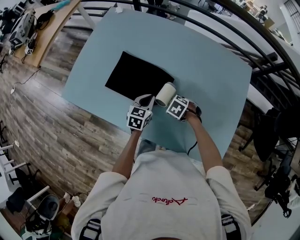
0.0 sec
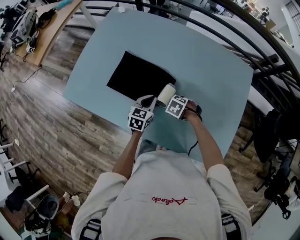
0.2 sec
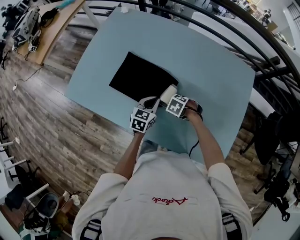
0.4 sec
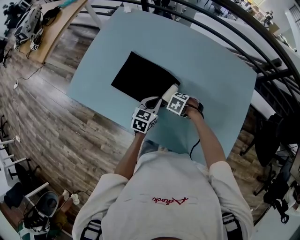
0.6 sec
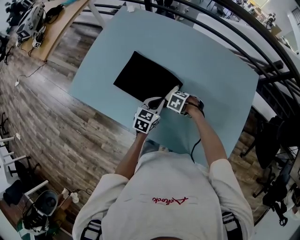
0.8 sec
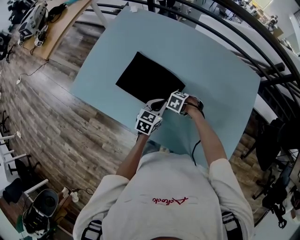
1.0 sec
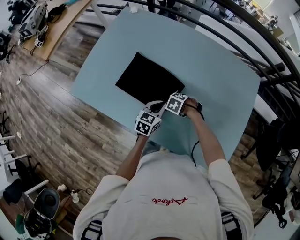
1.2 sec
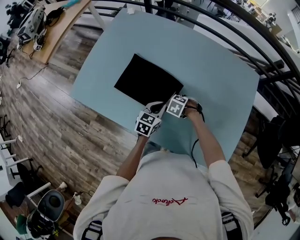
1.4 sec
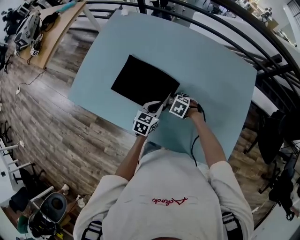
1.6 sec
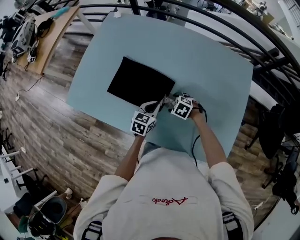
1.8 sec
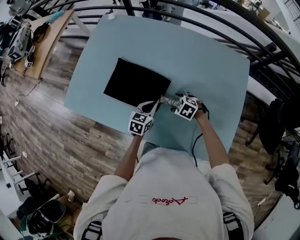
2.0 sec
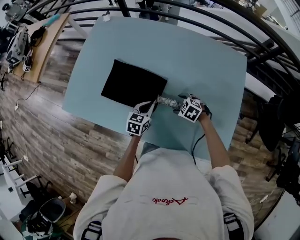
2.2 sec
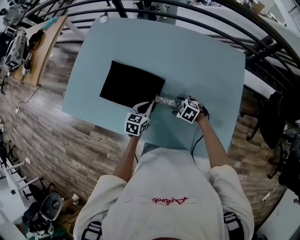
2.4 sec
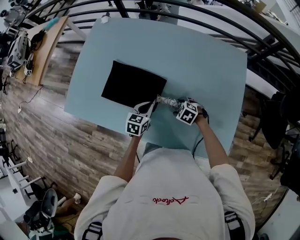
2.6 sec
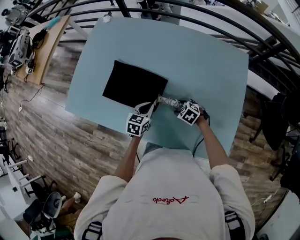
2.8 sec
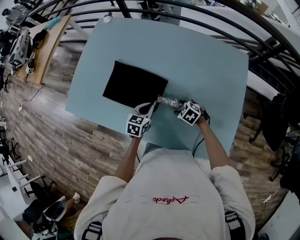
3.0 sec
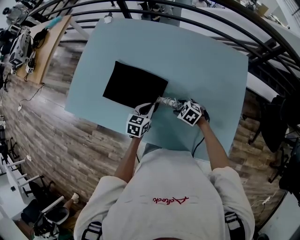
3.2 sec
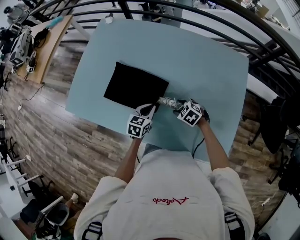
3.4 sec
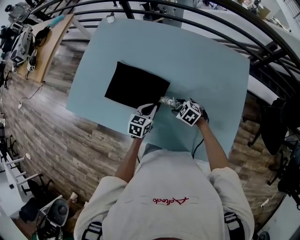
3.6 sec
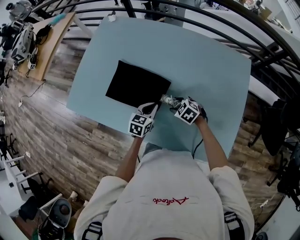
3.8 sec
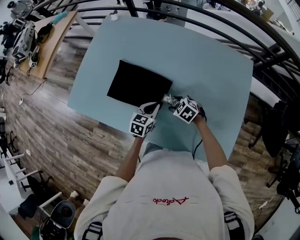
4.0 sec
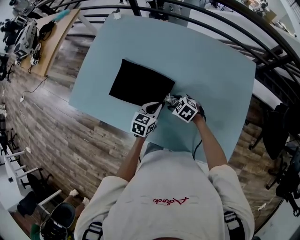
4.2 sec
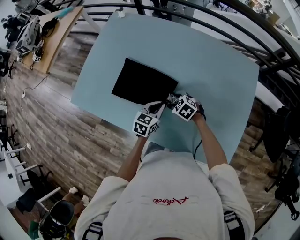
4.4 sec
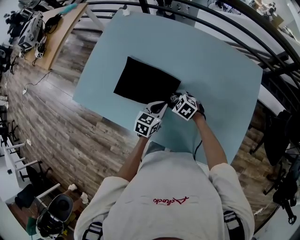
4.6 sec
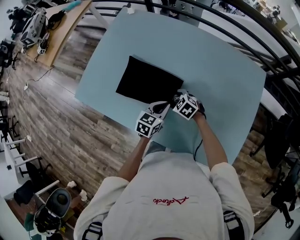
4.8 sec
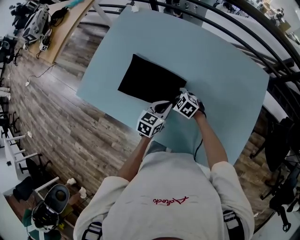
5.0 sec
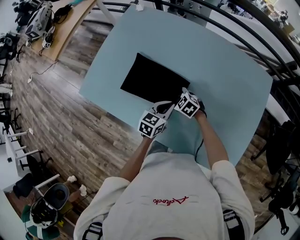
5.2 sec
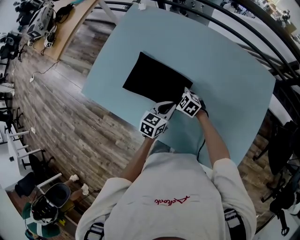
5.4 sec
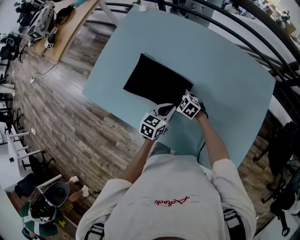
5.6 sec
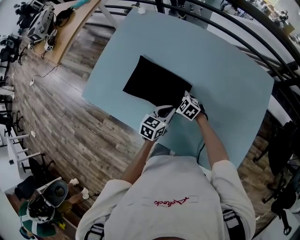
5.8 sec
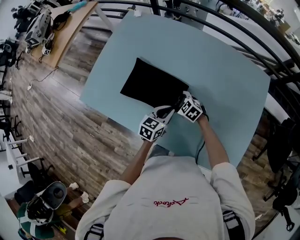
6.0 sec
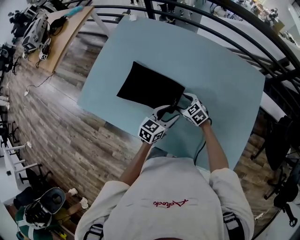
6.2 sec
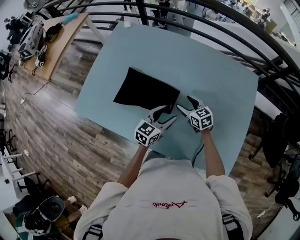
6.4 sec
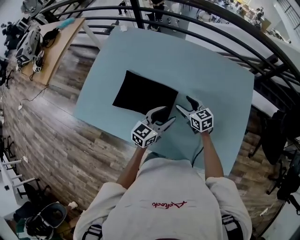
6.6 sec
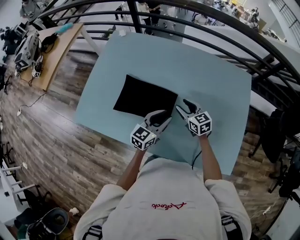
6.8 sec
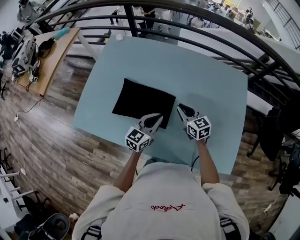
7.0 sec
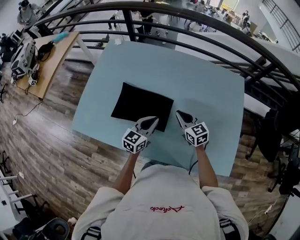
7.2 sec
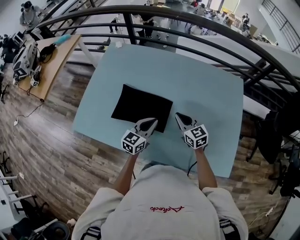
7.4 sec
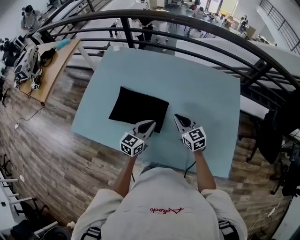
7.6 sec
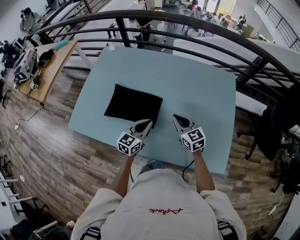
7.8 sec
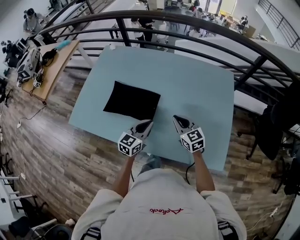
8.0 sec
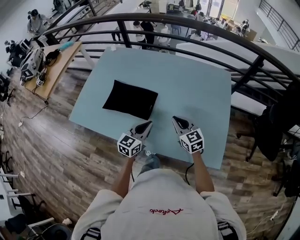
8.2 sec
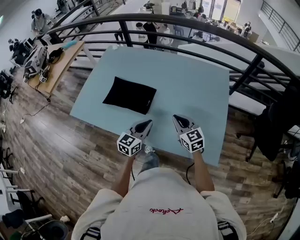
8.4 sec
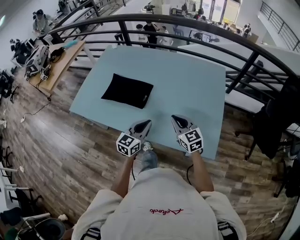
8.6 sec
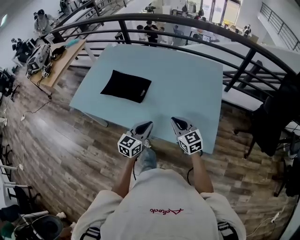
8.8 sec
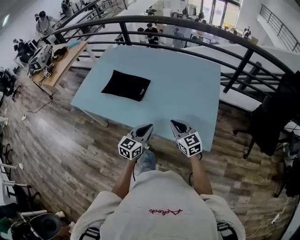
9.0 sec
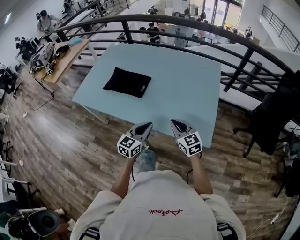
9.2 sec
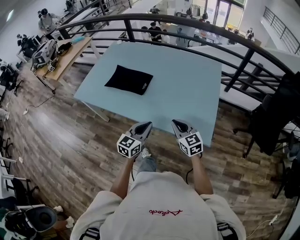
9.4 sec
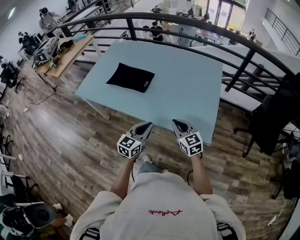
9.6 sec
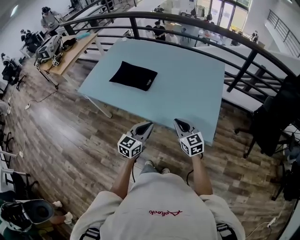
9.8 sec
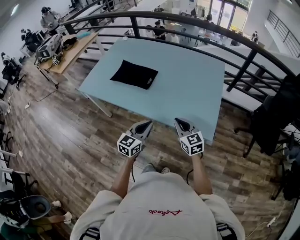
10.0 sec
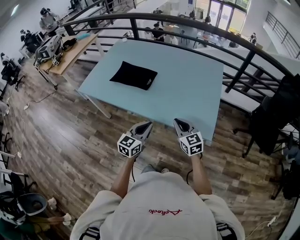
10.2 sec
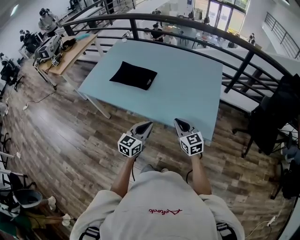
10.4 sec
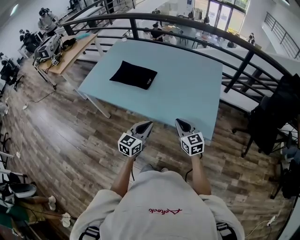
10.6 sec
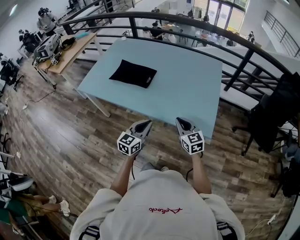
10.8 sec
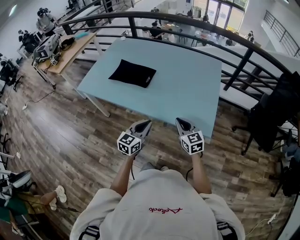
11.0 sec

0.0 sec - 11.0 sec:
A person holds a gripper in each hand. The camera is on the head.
0.0 sec - 1.6 sec: The right gripper opens up.
1.6 sec - 3.2 sec: The right gripper changes place by approximately 10 cm.
3.2 sec - 4.8 sec: The right gripper is displaced to the left and forward by about 15 cm.
4.8 sec - 6.2 sec: The left gripper opens up.
6.2 sec - 7.8 sec: The right gripper goes some 20 cm upward, to the right and backward, swivels some 40 degrees, and closes its fingers; the left gripper shifts roughly 5 cm upward, and closes its fingers.
7.8 sec - 9.4 sec: The two grippers go roughly 30 cm backward and to the right.
9.4 sec - 11.0 sec: The left gripper shifts roughly 5 cm backward.

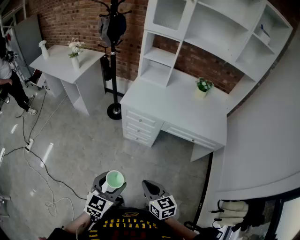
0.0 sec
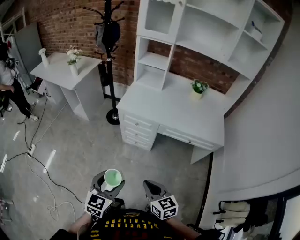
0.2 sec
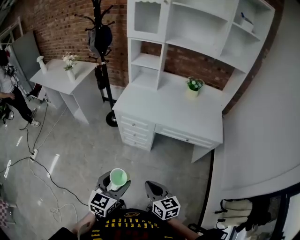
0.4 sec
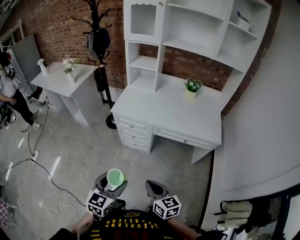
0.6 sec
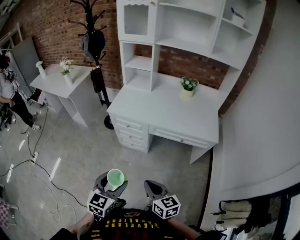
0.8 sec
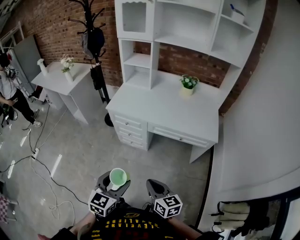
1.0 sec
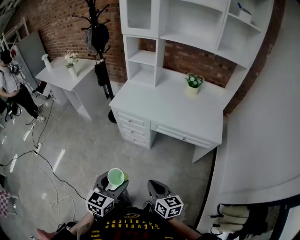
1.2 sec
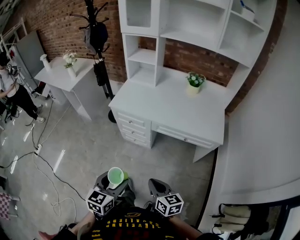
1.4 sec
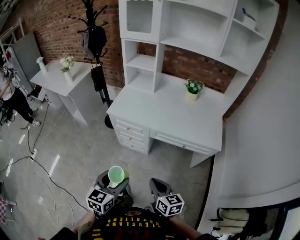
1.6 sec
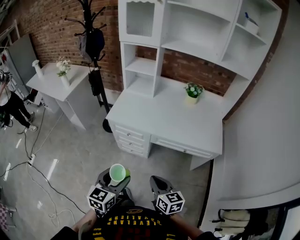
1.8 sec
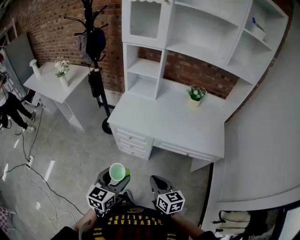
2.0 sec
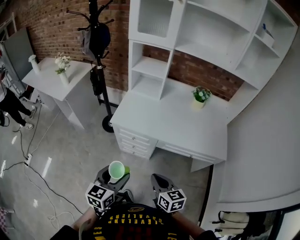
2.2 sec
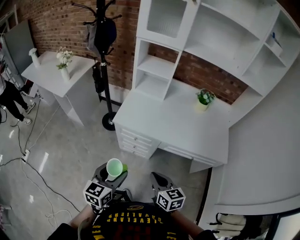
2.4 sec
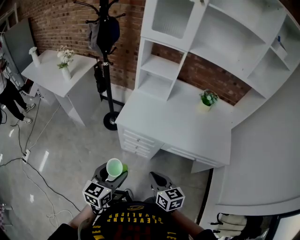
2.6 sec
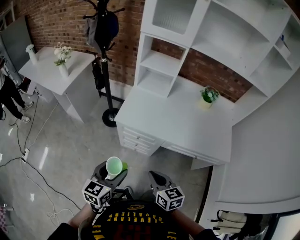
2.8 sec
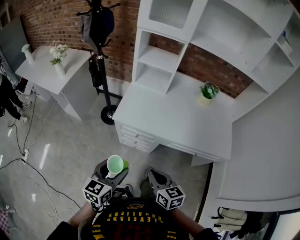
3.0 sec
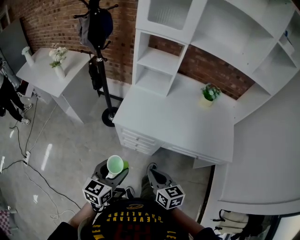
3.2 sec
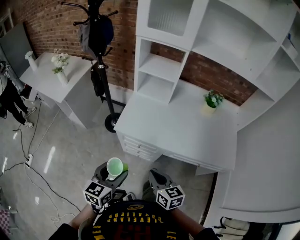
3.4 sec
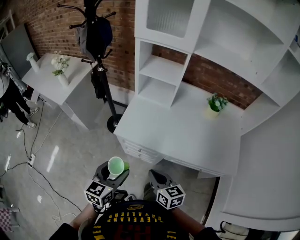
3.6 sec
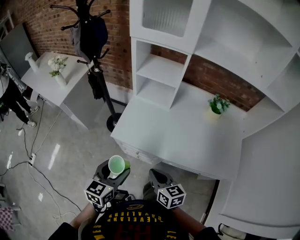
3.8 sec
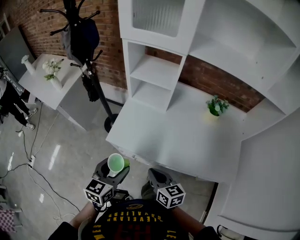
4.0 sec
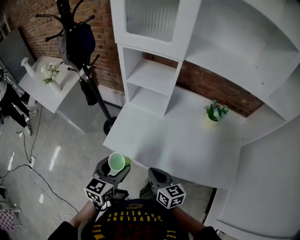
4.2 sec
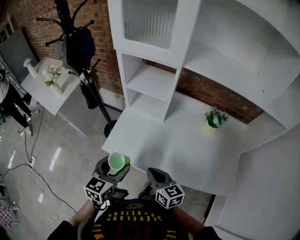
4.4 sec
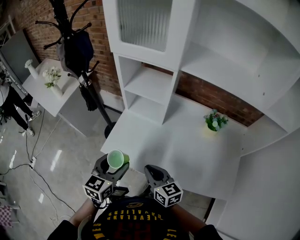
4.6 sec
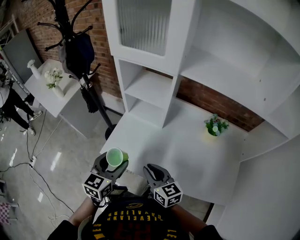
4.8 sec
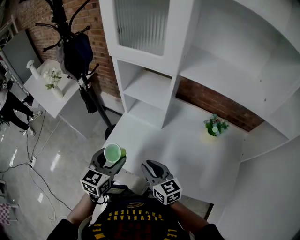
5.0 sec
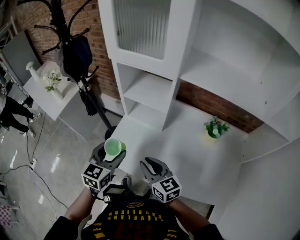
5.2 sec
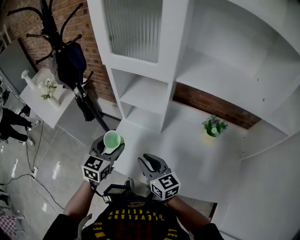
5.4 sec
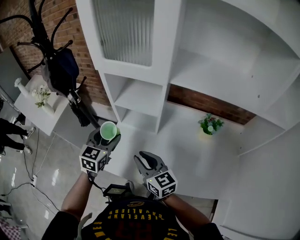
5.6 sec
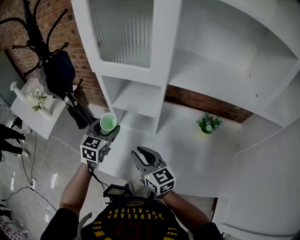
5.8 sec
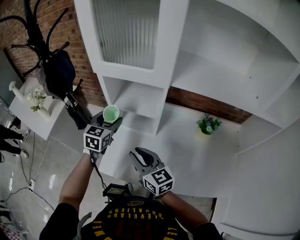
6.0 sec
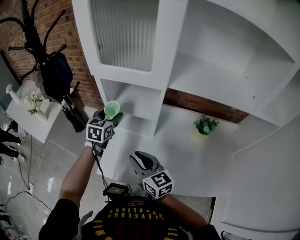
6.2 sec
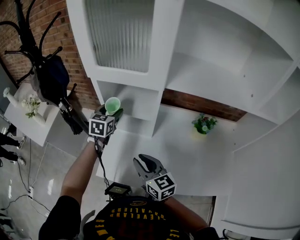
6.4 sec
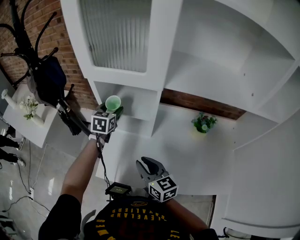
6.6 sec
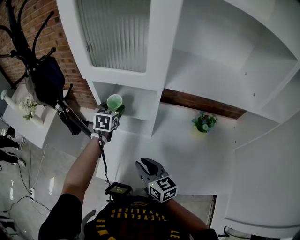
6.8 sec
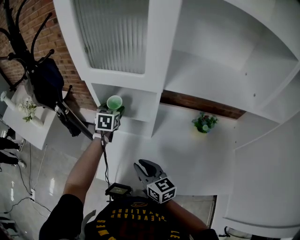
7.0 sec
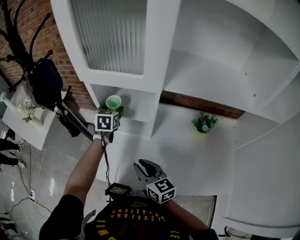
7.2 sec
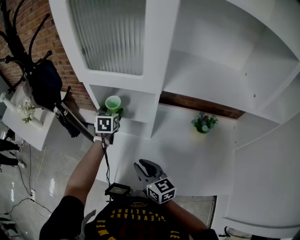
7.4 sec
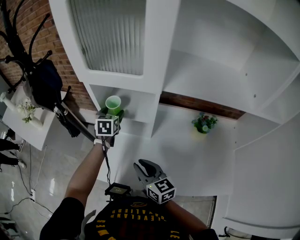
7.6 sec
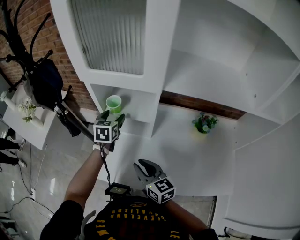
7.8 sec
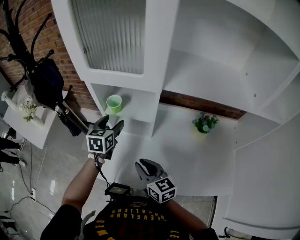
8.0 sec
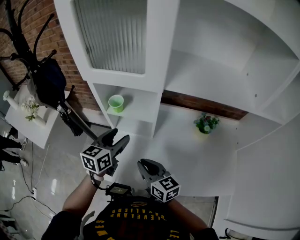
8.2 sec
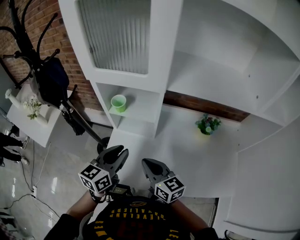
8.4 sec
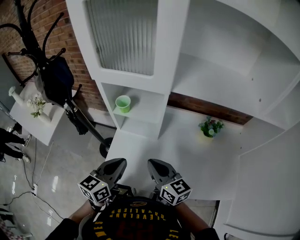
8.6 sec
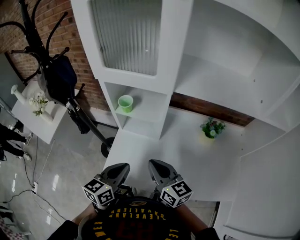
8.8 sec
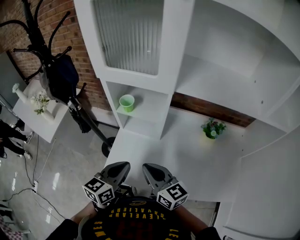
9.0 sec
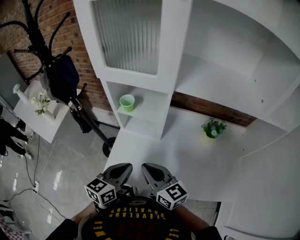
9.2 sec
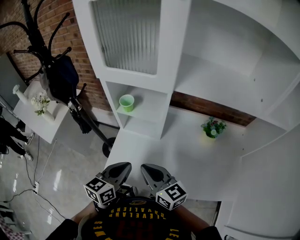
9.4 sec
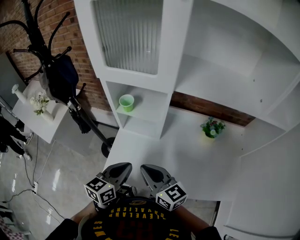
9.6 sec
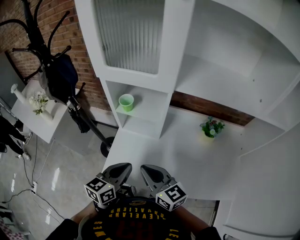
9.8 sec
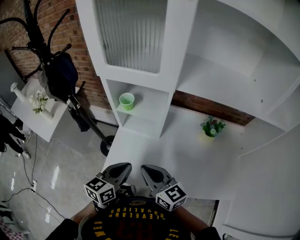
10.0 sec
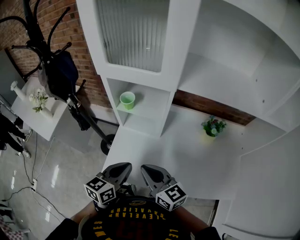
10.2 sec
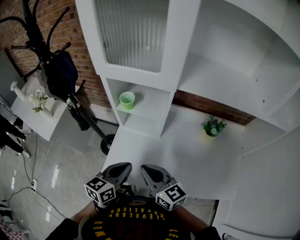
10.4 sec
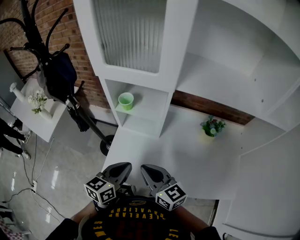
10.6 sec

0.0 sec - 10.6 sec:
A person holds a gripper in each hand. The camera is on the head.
0.0 sec - 1.6 sec: The two grippers go roughly 20 cm to the right.
1.6 sec - 3.0 sec: Both grippers travel together forward and to the left, about 25 cm.
3.0 sec - 4.6 sec: The two grippers go some 30 cm forward and to the right.
4.6 sec - 6.0 sec: The left gripper goes some 30 cm forward, while the right gripper moves forward and upward, roughly 15 cm.
6.0 sec - 7.6 sec: The left gripper moves forward and downward, approximately 10 cm. Meanwhile the right gripper shifts about 5 cm downward.
7.6 sec - 9.0 sec: The right gripper goes approximately 5 cm upward. The left gripper moves backward, approximately 30 cm, changes its angle by roughly 30 degrees, and closes up.
9.0 sec - 10.6 sec: There are only small adjustments of the grippers.

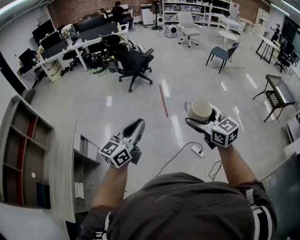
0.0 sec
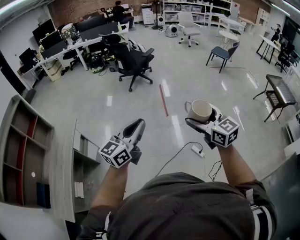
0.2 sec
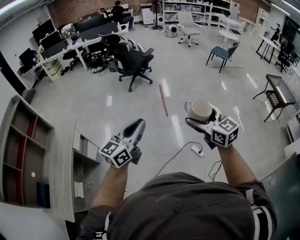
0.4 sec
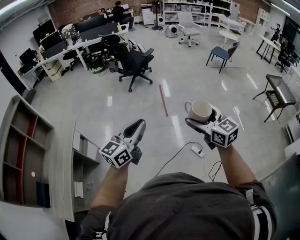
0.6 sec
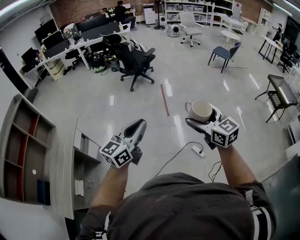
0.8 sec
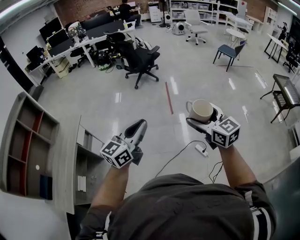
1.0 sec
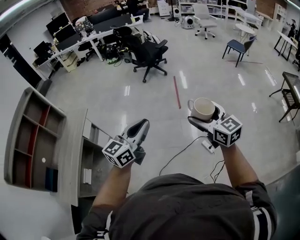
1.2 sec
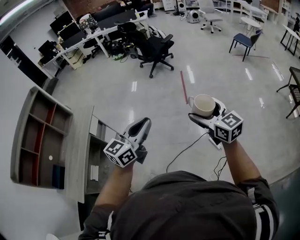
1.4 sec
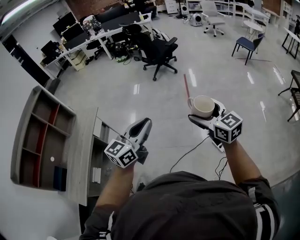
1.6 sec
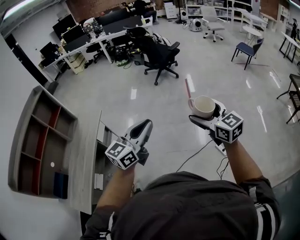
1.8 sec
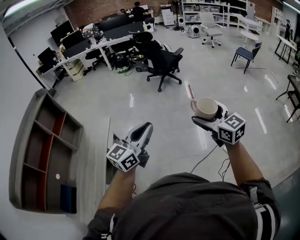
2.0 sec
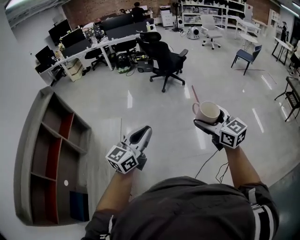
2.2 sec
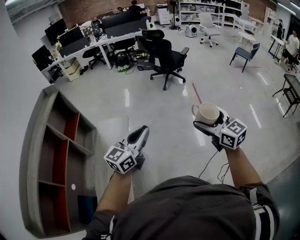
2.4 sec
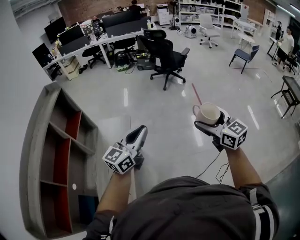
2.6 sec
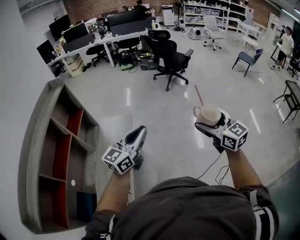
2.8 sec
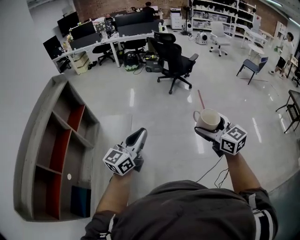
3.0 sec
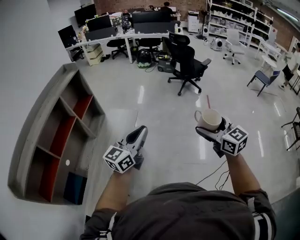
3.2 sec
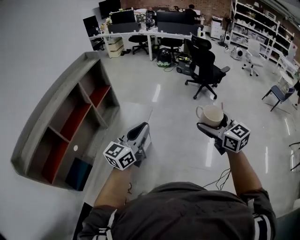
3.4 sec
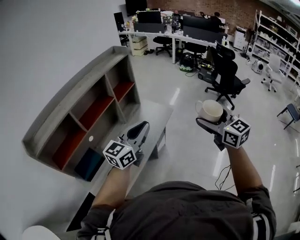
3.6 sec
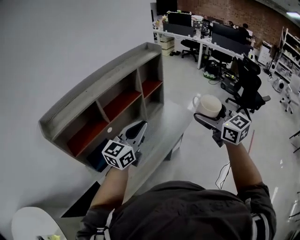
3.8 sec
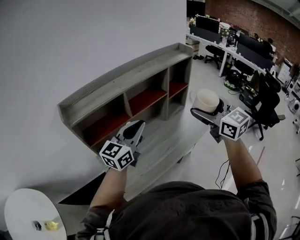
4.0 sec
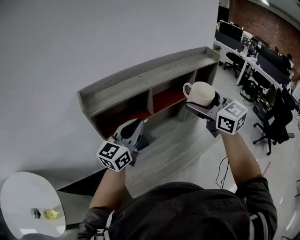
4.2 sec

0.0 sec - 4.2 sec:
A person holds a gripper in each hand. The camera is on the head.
0.0 sec - 1.4 sec: The grippers stay close to where they were, moving slightly.
1.4 sec - 2.8 sec: The two grippers travel together, to the left, approximately 60 cm.
2.8 sec - 4.2 sec: The pair of grippers is taken some 50 cm. The right gripper changes its angle by approximately 70 degrees, while the left gripper changes its angle by approximately 60 degrees.
